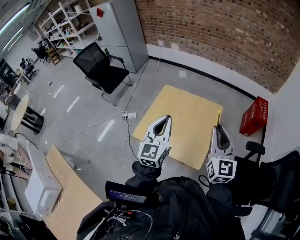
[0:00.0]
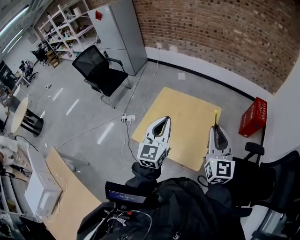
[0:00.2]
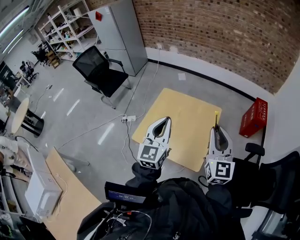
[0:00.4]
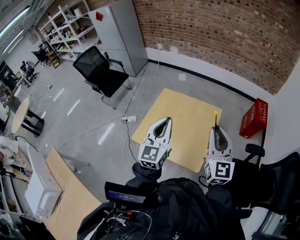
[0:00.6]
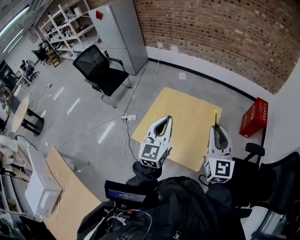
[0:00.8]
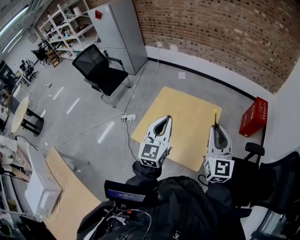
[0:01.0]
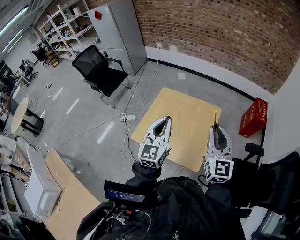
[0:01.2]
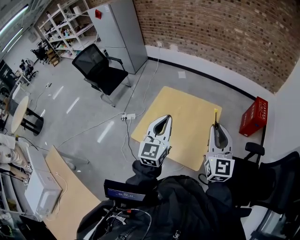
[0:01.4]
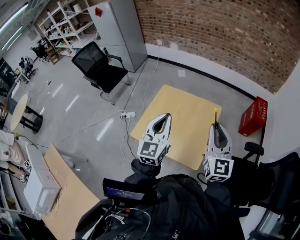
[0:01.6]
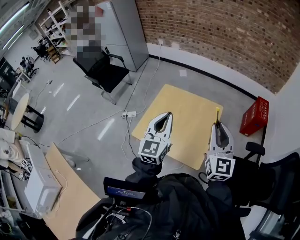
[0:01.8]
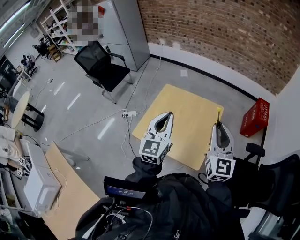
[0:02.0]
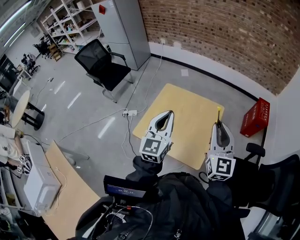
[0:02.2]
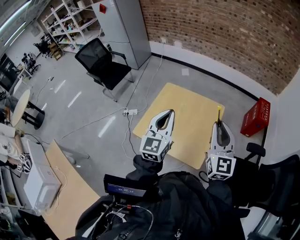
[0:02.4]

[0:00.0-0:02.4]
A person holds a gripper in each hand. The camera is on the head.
0:00.0 to 0:01.2: The grippers make only small movements.
0:01.2 to 0:02.4: Both grippers stay about where they are.

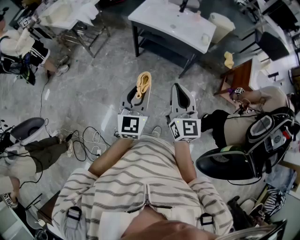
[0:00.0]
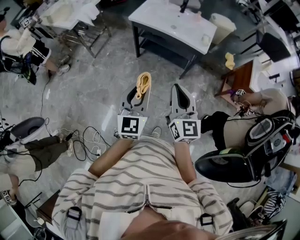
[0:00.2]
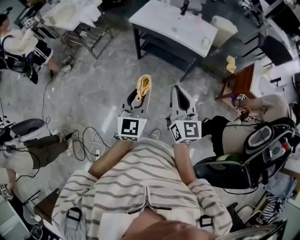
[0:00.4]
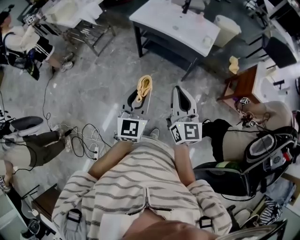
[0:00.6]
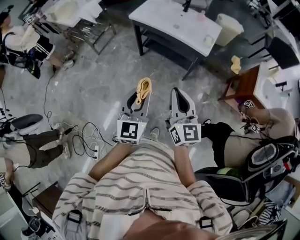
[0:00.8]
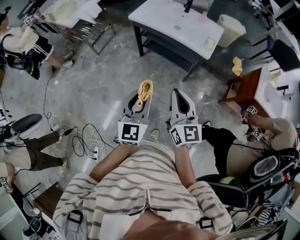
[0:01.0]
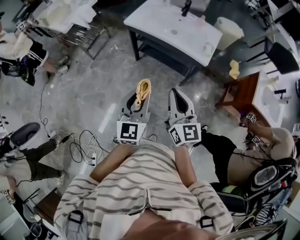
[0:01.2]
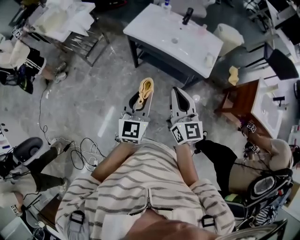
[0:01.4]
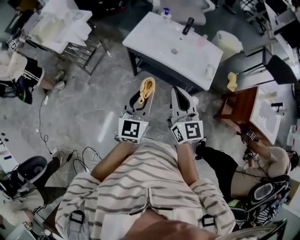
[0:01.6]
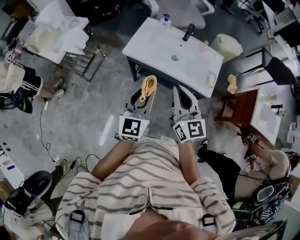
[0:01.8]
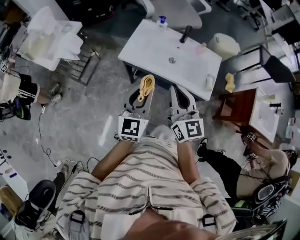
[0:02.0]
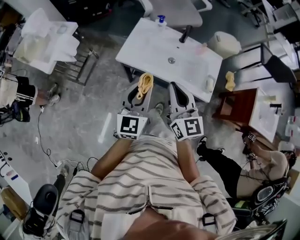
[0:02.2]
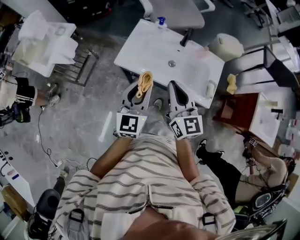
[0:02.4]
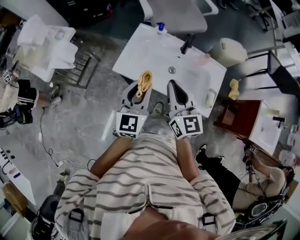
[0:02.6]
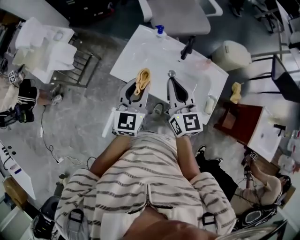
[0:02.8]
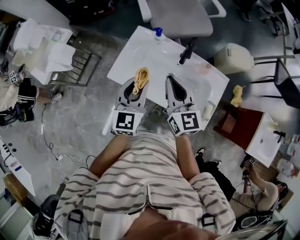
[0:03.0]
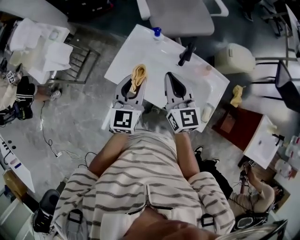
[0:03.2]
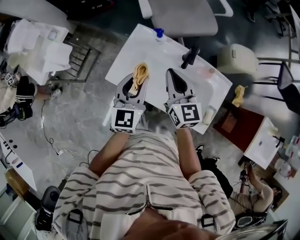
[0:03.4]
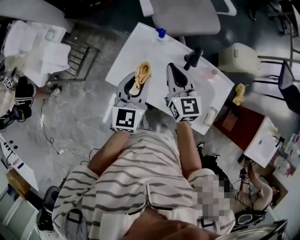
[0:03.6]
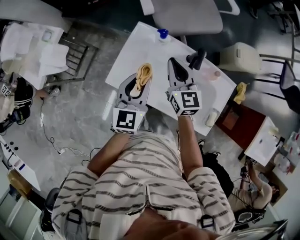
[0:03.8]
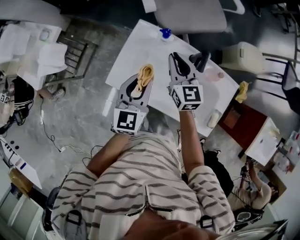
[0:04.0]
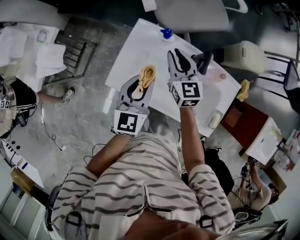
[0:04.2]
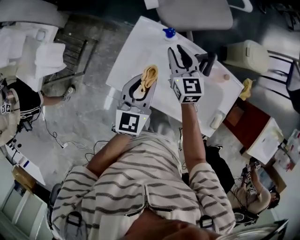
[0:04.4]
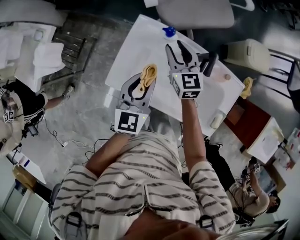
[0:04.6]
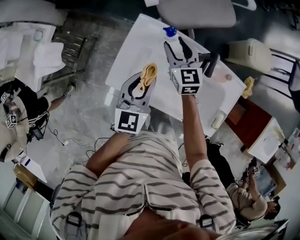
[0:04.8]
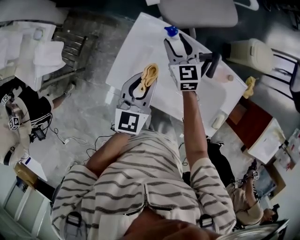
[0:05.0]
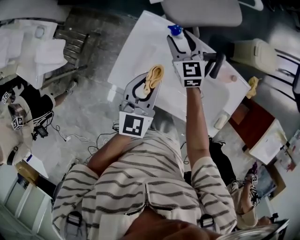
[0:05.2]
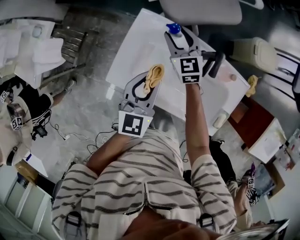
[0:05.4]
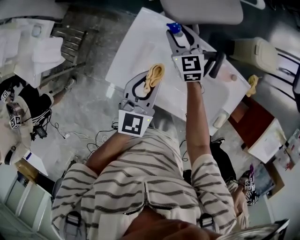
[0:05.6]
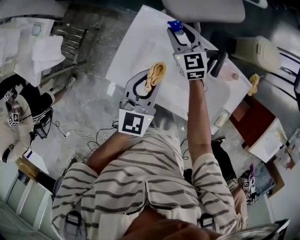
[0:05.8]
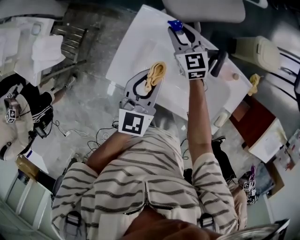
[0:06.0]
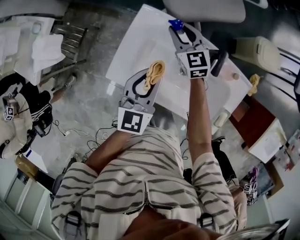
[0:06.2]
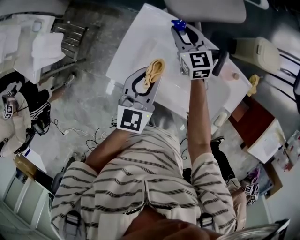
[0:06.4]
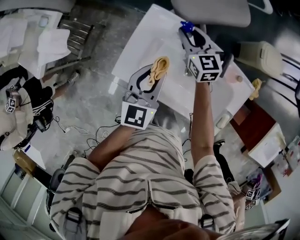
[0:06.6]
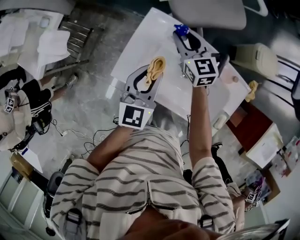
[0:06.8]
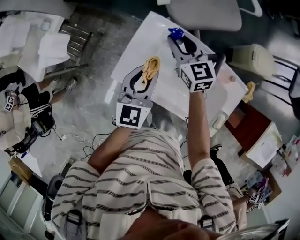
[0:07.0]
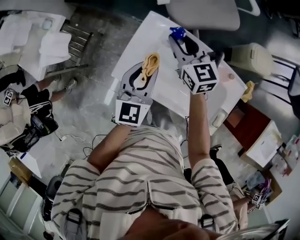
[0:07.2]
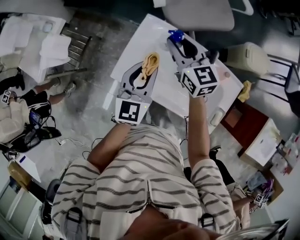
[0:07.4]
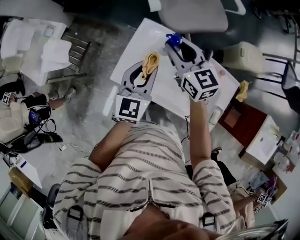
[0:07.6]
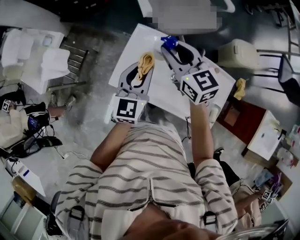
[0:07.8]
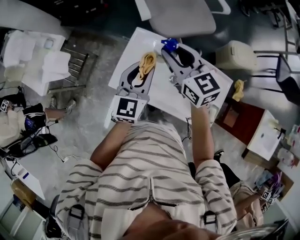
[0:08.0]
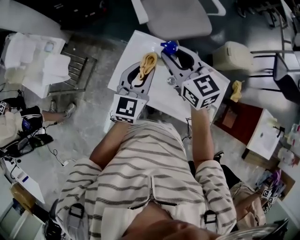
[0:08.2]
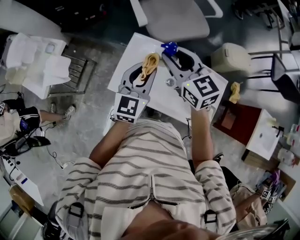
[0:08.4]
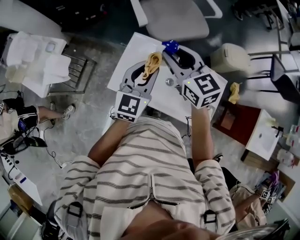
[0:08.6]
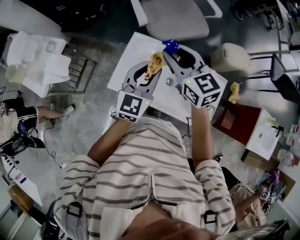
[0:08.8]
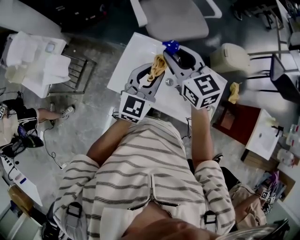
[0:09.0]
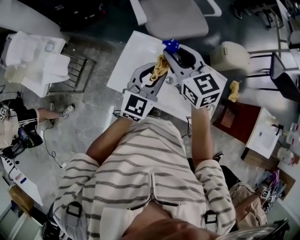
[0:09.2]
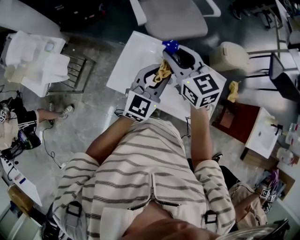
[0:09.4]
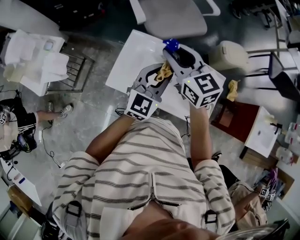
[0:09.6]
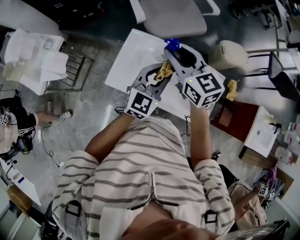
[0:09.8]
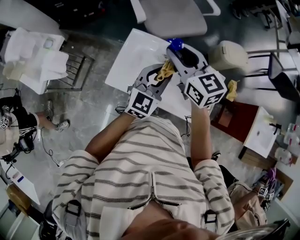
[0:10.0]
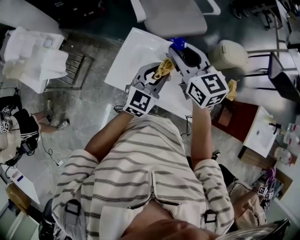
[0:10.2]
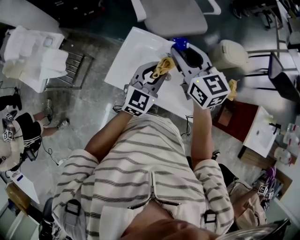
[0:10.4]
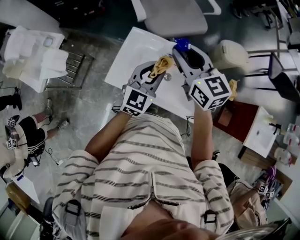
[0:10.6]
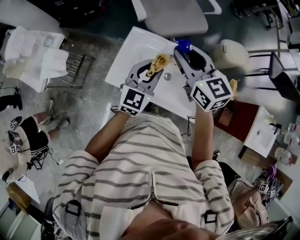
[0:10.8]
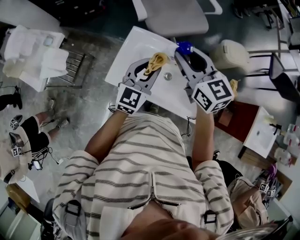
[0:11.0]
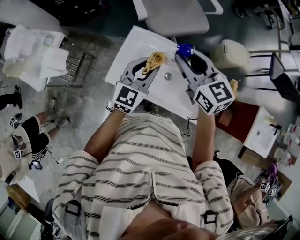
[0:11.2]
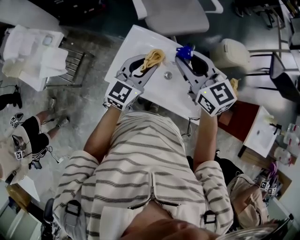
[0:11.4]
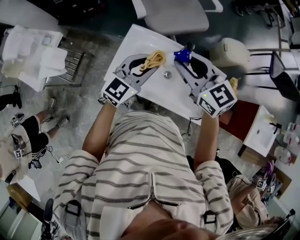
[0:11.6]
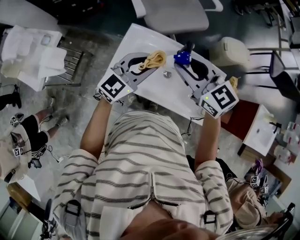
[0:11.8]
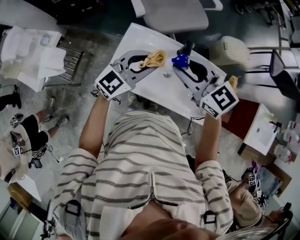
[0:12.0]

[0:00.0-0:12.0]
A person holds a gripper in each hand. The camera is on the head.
0:00.0 to 0:01.6: The two grippers go some 30 cm forward.
0:01.6 to 0:03.0: The grippers both shift forward by approximately 35 cm.
0:03.0 to 0:04.4: The right gripper heads forward and downward, covering roughly 25 cm, and opens. The left gripper shifts approximately 15 cm forward and downward.
0:04.4 to 0:06.0: The right gripper shifts approximately 10 cm forward and downward.
0:06.0 to 0:07.6: The right gripper moves upward and backward, some 20 cm. The left gripper goes some 10 cm upward.
0:07.6 to 0:09.0: The left gripper heads upward and to the right, covering approximately 10 cm. Meanwhile the right gripper goes approximately 10 cm upward and backward.
0:09.0 to 0:10.4: The grippers make only small movements.
0:10.4 to 0:12.0: The left gripper changes its angle by approximately 20 degrees. Meanwhile the right gripper moves backward, approximately 5 cm.

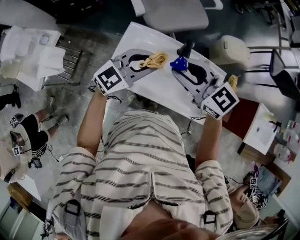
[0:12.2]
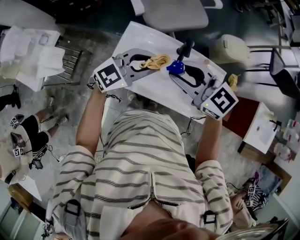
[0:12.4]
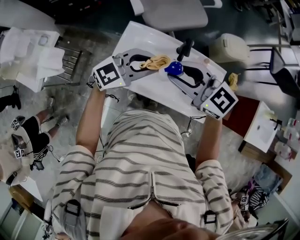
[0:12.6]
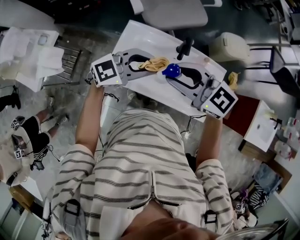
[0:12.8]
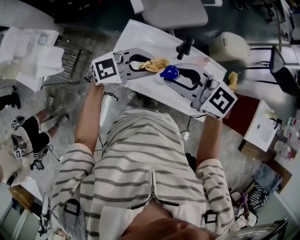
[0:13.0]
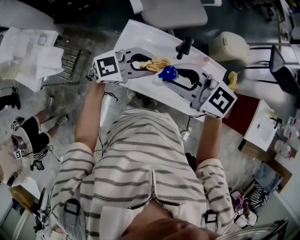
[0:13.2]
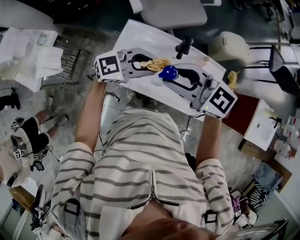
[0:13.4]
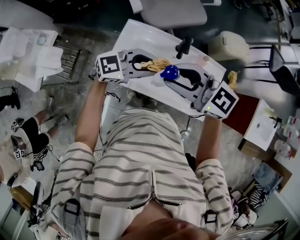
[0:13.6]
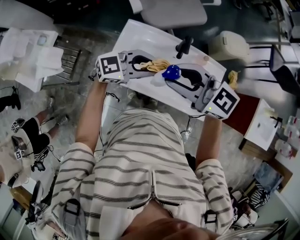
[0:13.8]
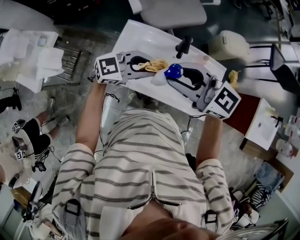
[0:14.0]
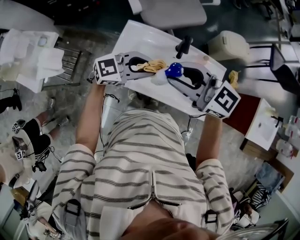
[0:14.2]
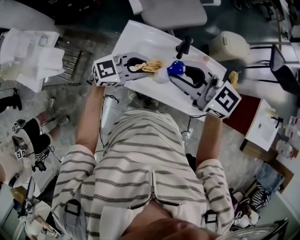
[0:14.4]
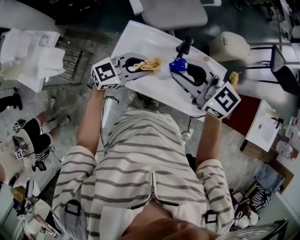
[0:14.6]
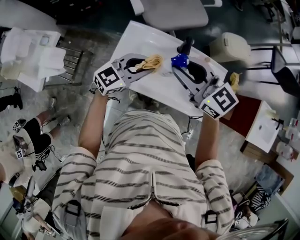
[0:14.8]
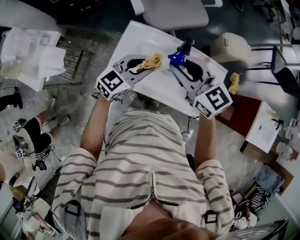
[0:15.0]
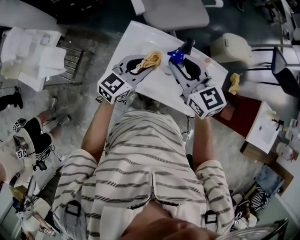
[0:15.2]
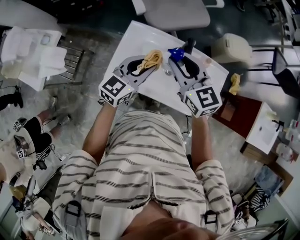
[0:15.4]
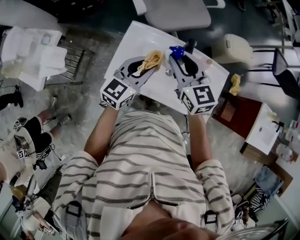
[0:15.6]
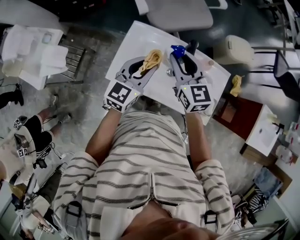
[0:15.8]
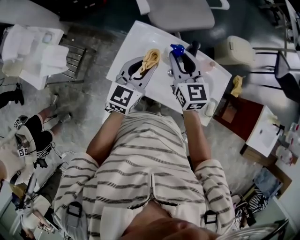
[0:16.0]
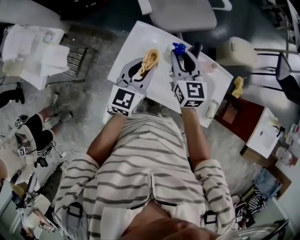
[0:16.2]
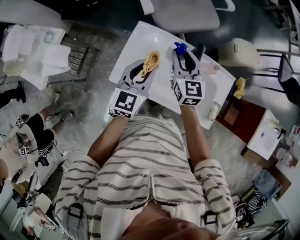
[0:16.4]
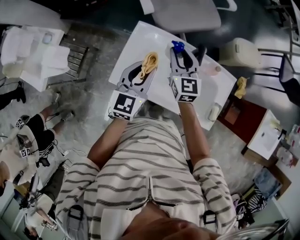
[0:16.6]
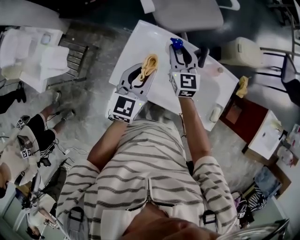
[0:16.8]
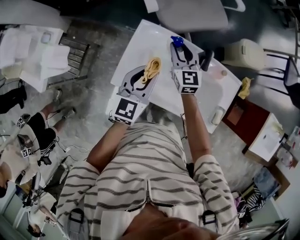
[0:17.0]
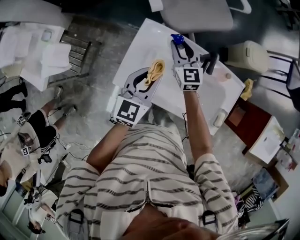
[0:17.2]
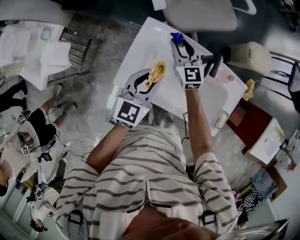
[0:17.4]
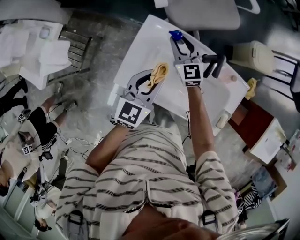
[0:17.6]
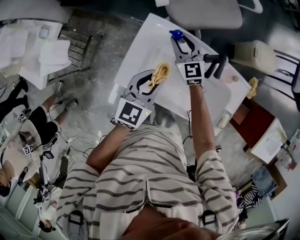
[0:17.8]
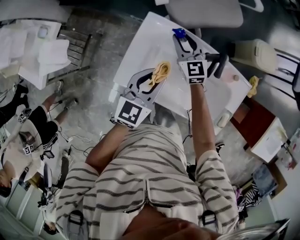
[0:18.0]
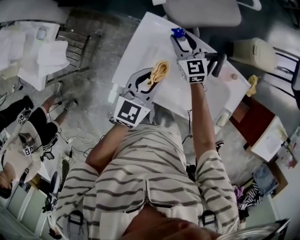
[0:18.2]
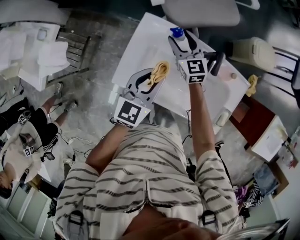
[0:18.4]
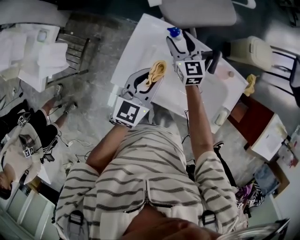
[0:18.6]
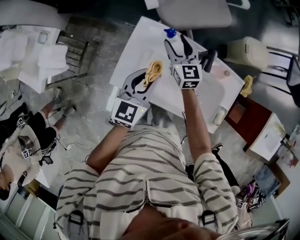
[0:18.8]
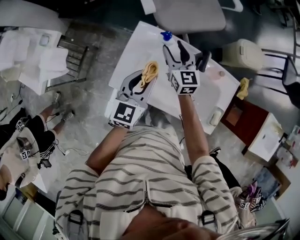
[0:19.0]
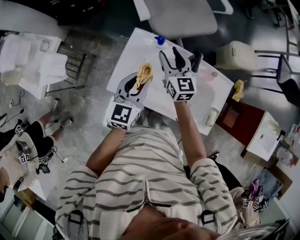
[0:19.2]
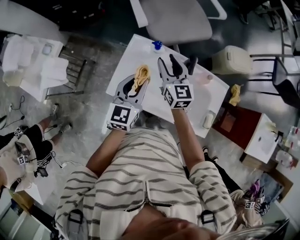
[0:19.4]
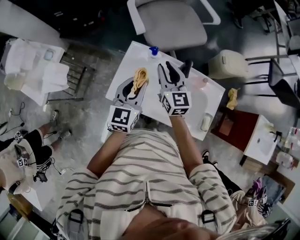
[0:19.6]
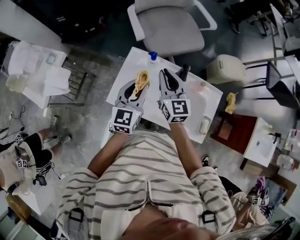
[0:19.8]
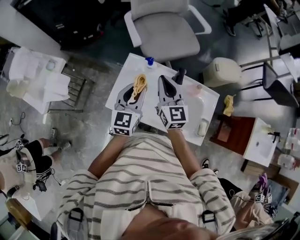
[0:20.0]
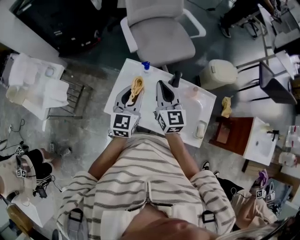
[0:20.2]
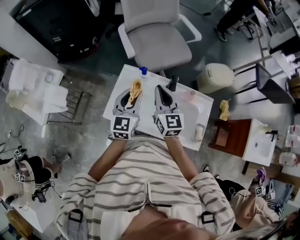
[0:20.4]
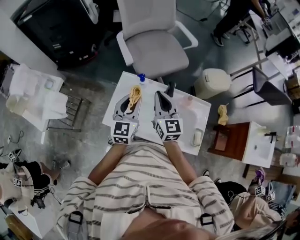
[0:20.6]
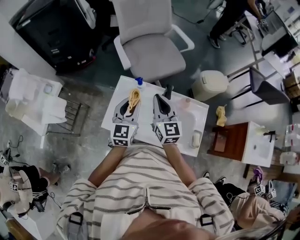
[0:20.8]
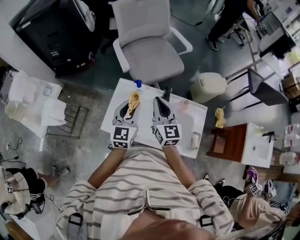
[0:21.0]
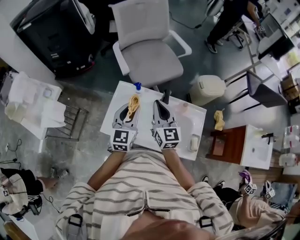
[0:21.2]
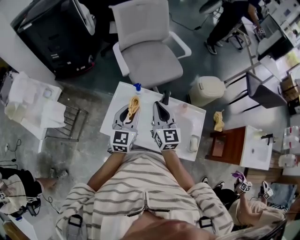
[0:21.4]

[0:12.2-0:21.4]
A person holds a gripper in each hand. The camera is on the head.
0:12.2 to 0:13.8: The left gripper changes its angle by some 20 degrees.
0:13.8 to 0:15.2: The left gripper rotates roughly 40 degrees. Meanwhile the right gripper changes place by some 10 cm, and rotates roughly 30 degrees.
0:15.2 to 0:16.8: The right gripper heads downward and forward, covering approximately 20 cm, and swivels about 20 degrees. Meanwhile the left gripper moves to the left, about 5 cm, and changes its angle by about 20 degrees.
0:16.8 to 0:18.4: The left gripper shifts about 5 cm downward. Meanwhile the right gripper is displaced downward and forward by about 10 cm, and opens up.
0:18.4 to 0:19.8: The right gripper goes about 25 cm upward and backward, and closes up; the left gripper travels upward by approximately 10 cm.
0:19.8 to 0:21.4: The right gripper shifts by approximately 5 cm.
